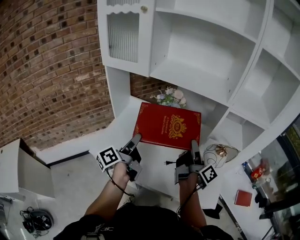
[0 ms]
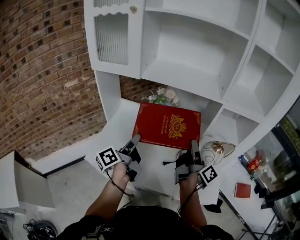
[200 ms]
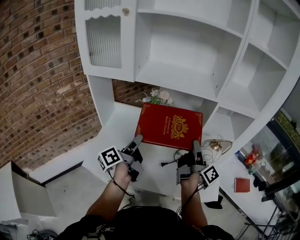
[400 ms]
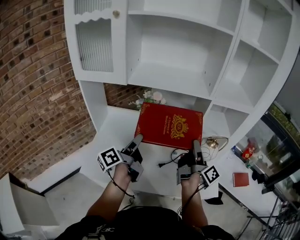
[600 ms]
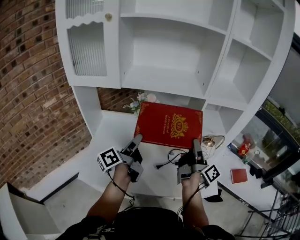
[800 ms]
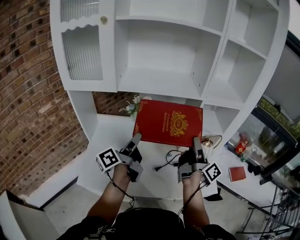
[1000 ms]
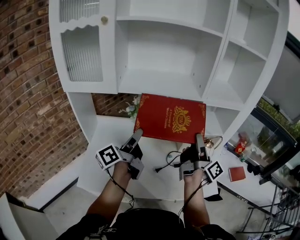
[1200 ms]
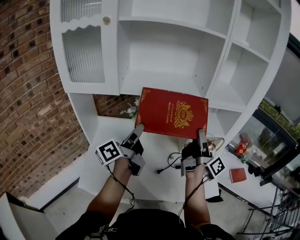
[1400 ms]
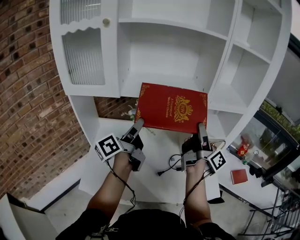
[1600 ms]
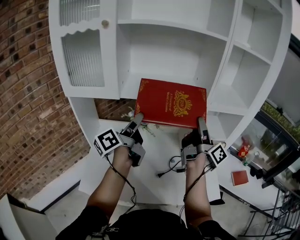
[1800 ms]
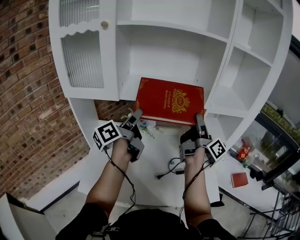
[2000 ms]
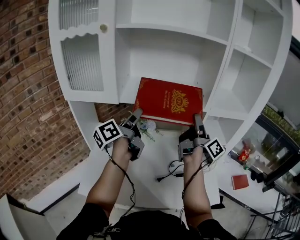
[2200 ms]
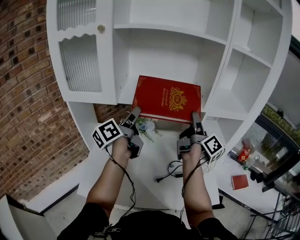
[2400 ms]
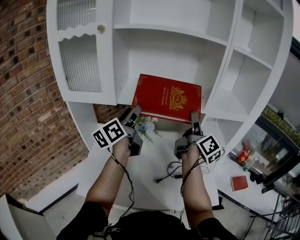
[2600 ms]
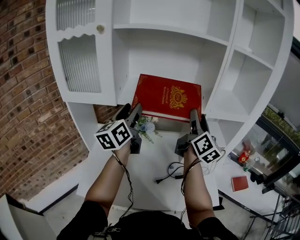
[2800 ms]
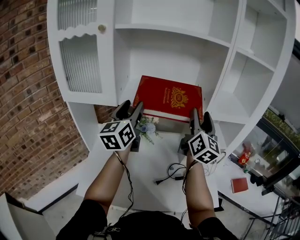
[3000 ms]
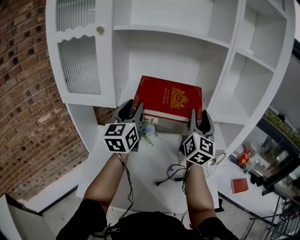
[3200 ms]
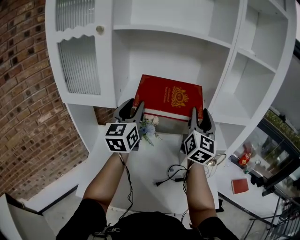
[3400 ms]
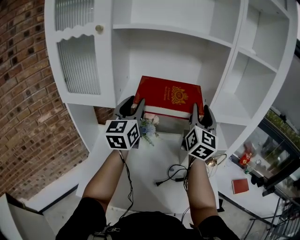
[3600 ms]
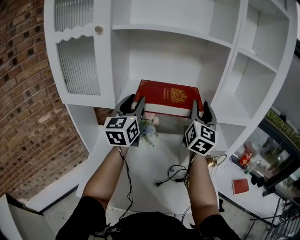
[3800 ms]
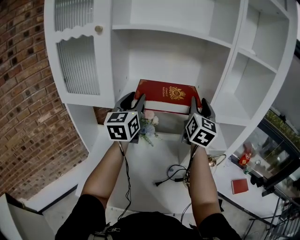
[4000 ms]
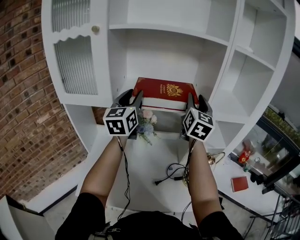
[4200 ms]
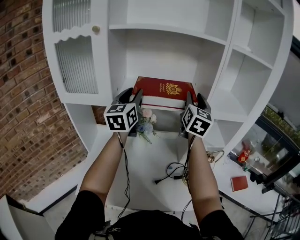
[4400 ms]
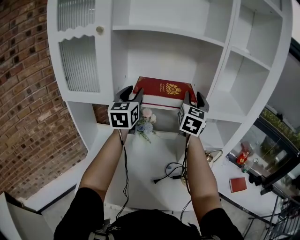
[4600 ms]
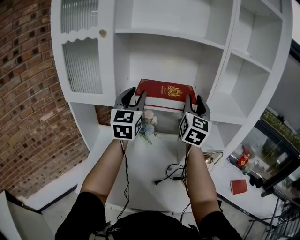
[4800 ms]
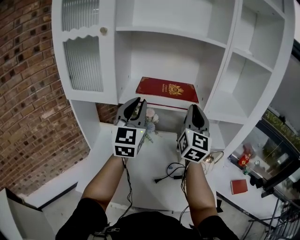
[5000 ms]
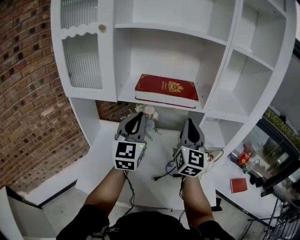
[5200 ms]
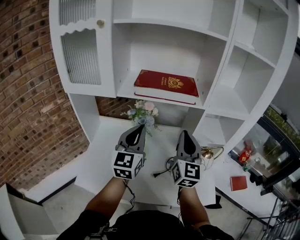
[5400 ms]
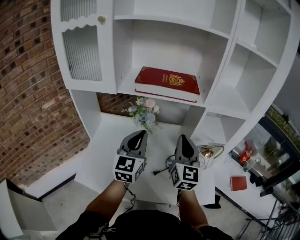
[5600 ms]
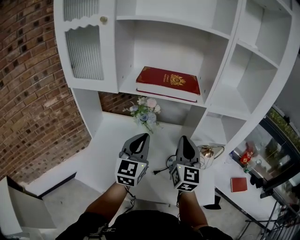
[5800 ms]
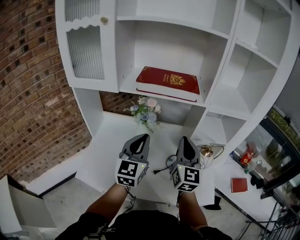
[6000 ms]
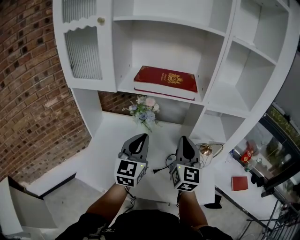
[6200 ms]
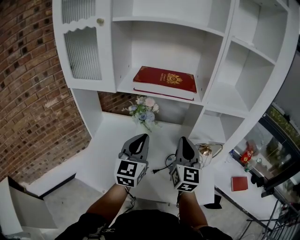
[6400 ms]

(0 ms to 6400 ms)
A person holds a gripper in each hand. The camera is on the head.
0 ms - 1600 ms: The right gripper shifts approximately 15 cm upward and forward, and swivels some 20 degrees. The left gripper travels forward and upward by roughly 20 cm, and rotates some 30 degrees.
1600 ms - 3200 ms: The left gripper moves forward and upward, roughly 10 cm, and twists approximately 60 degrees clockwise, seen from behind, while the right gripper is displaced upward and forward by some 10 cm, and rotates around the line of its fingers by some 70 degrees, counterclockwise from behind.
3200 ms - 4800 ms: The right gripper moves about 10 cm forward and comes back.
4800 ms - 6400 ms: The right gripper shifts approximately 20 cm downward and backward, and closes, while the left gripper heads downward, backward and to the right, covering some 25 cm, and closes up.

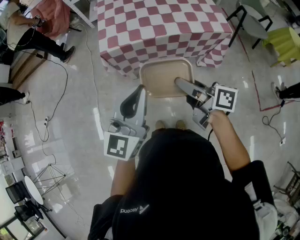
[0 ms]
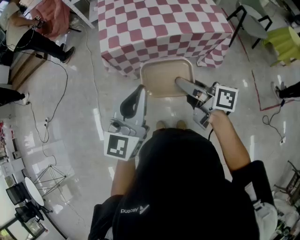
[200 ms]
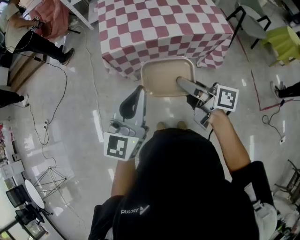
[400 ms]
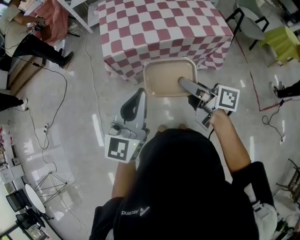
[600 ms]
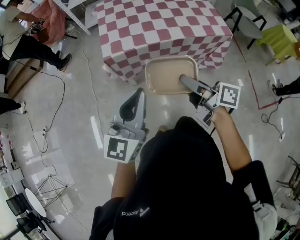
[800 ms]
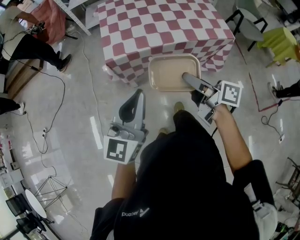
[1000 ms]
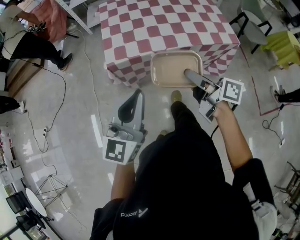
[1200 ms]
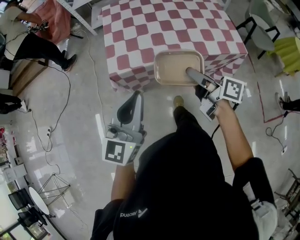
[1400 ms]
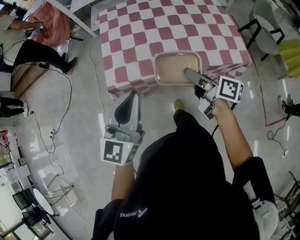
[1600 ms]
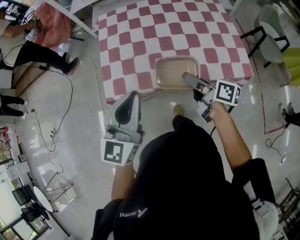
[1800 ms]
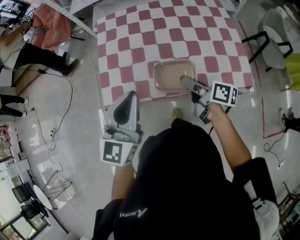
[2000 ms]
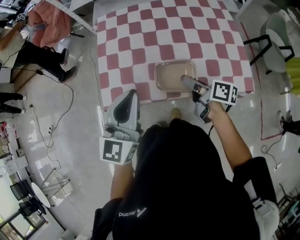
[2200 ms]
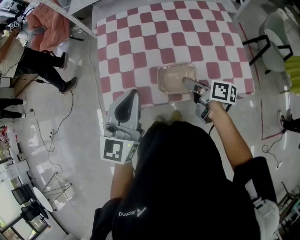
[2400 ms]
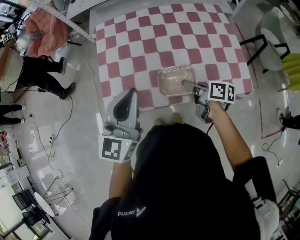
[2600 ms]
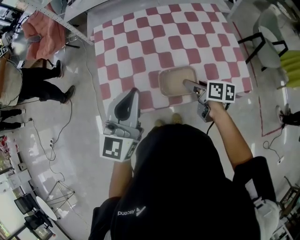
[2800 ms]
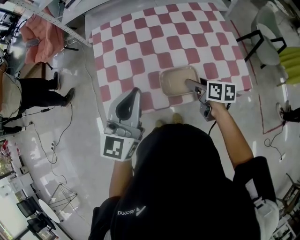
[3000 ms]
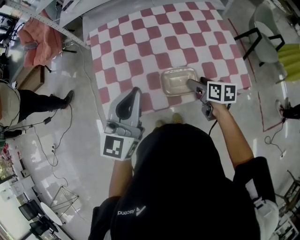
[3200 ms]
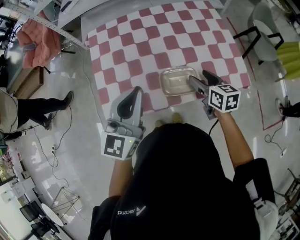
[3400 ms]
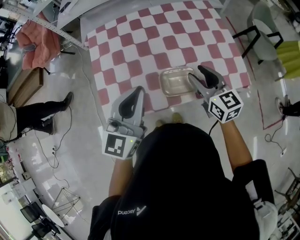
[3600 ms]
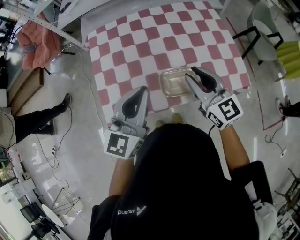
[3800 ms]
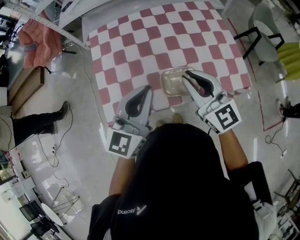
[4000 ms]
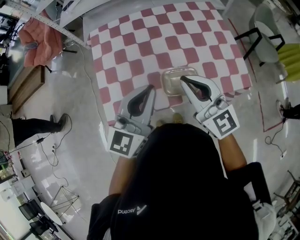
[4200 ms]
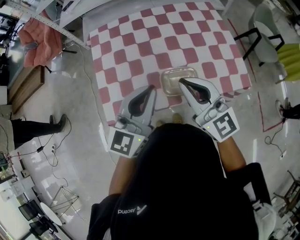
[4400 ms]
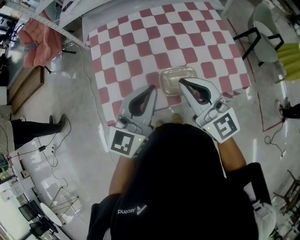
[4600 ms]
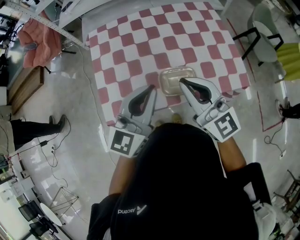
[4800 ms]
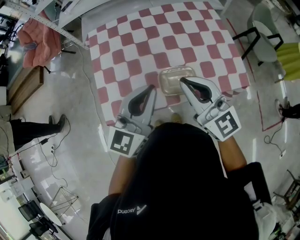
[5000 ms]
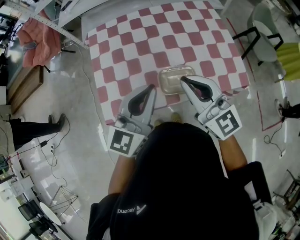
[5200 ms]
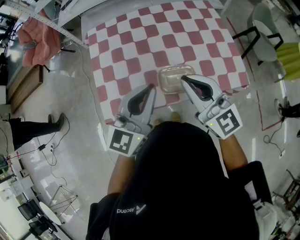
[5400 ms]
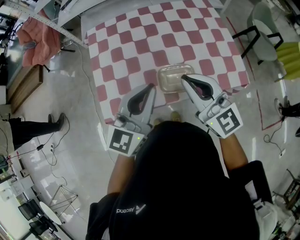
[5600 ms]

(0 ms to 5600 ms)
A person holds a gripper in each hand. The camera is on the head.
0 ms - 1400 ms: The two grippers go roughly 20 cm forward.
1400 ms - 2800 ms: The left gripper is displaced forward by approximately 25 cm, while the right gripper is displaced forward, downward and to the right by about 25 cm, and turns by some 30 degrees.
2800 ms - 4200 ms: The left gripper moves to the right, roughly 5 cm. Meanwhile the right gripper heads upward, covering roughly 20 cm, twists some 60 degrees counterclockwise, seen from behind, and closes up.
4200 ms - 5600 ms: The grippers move only a little.

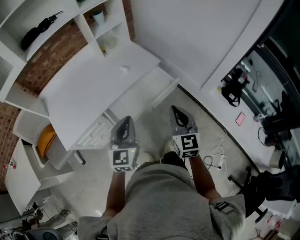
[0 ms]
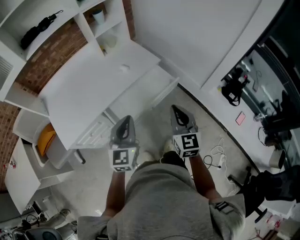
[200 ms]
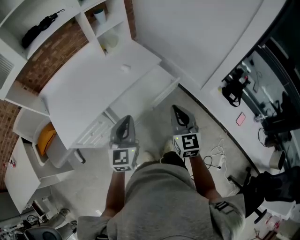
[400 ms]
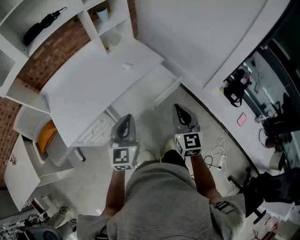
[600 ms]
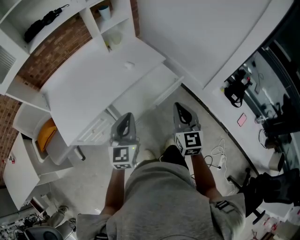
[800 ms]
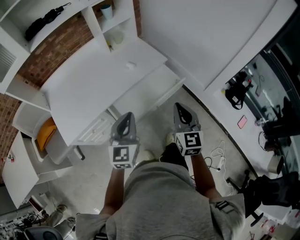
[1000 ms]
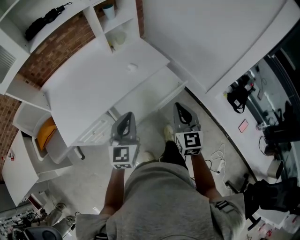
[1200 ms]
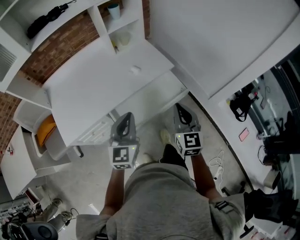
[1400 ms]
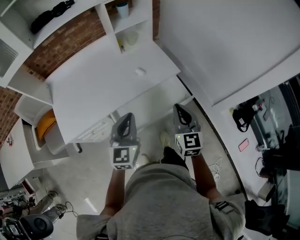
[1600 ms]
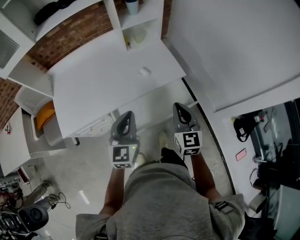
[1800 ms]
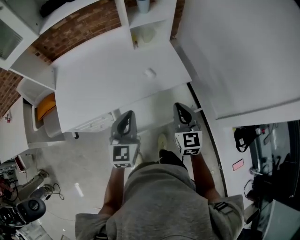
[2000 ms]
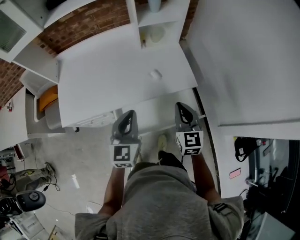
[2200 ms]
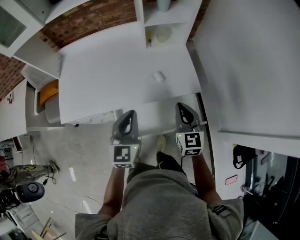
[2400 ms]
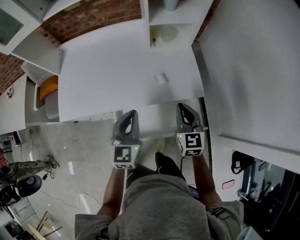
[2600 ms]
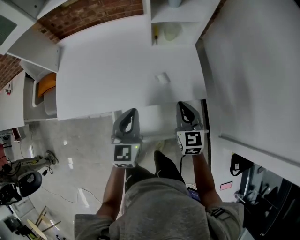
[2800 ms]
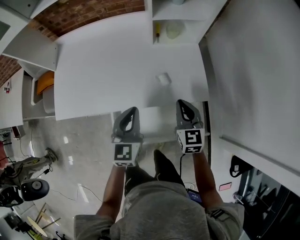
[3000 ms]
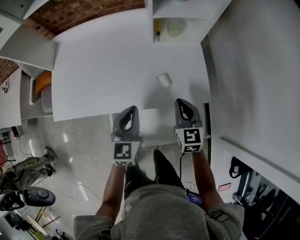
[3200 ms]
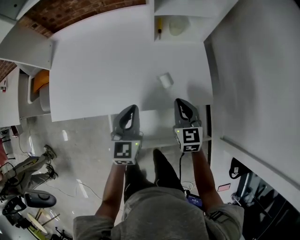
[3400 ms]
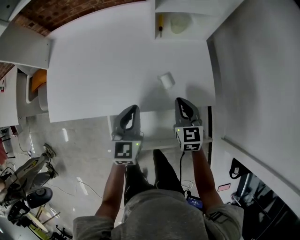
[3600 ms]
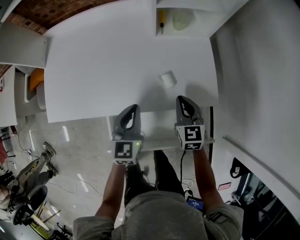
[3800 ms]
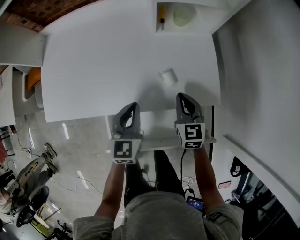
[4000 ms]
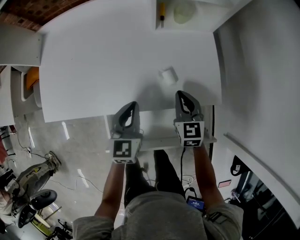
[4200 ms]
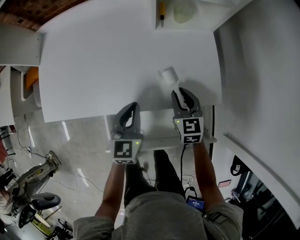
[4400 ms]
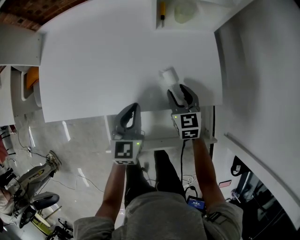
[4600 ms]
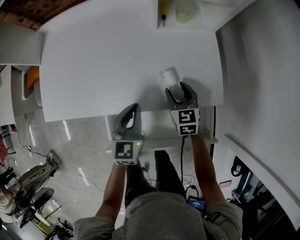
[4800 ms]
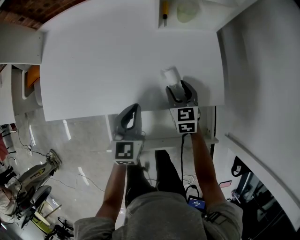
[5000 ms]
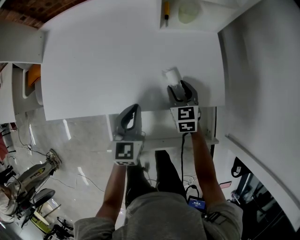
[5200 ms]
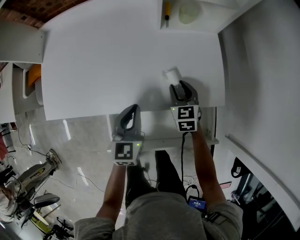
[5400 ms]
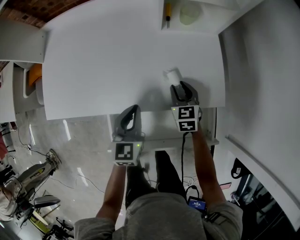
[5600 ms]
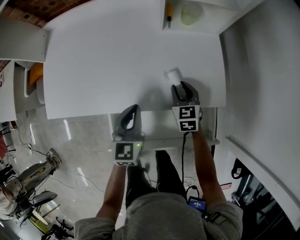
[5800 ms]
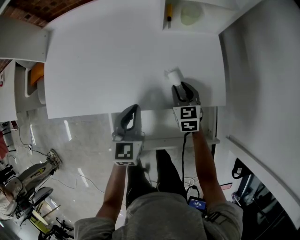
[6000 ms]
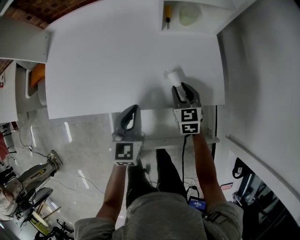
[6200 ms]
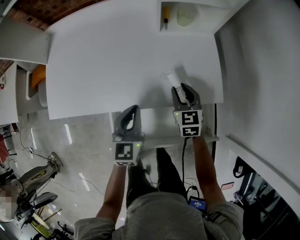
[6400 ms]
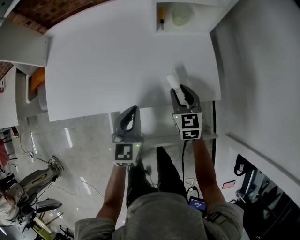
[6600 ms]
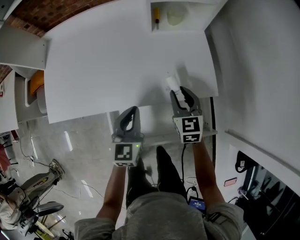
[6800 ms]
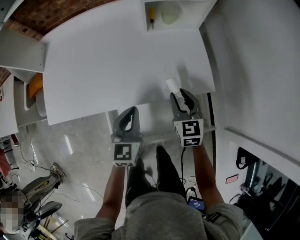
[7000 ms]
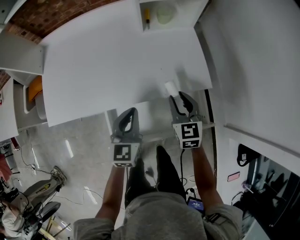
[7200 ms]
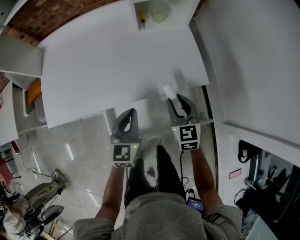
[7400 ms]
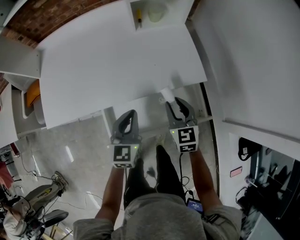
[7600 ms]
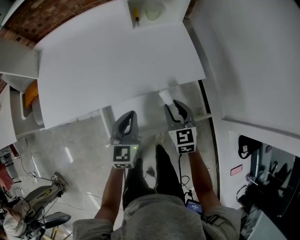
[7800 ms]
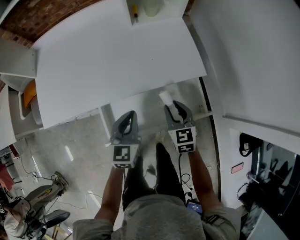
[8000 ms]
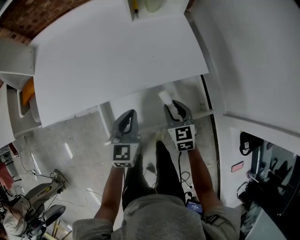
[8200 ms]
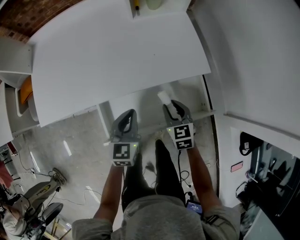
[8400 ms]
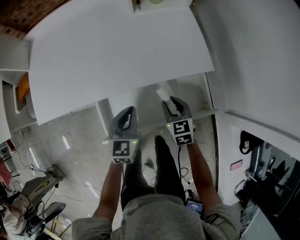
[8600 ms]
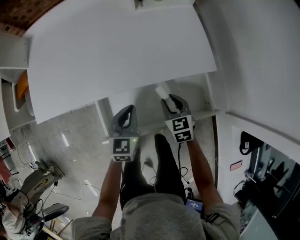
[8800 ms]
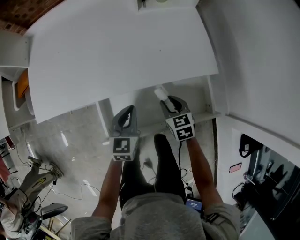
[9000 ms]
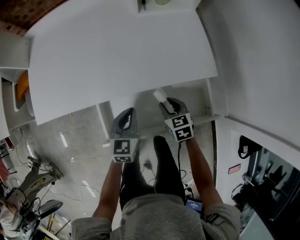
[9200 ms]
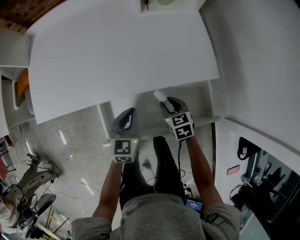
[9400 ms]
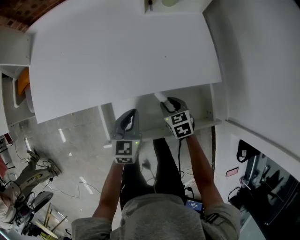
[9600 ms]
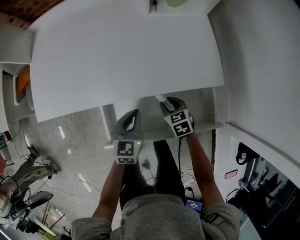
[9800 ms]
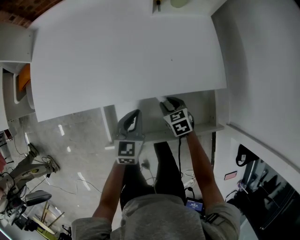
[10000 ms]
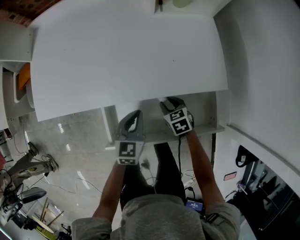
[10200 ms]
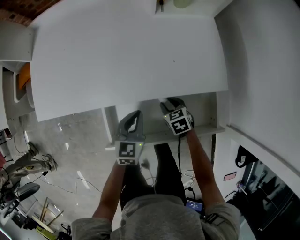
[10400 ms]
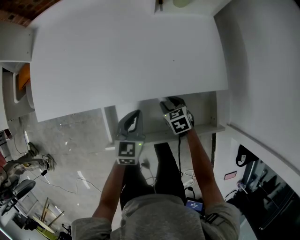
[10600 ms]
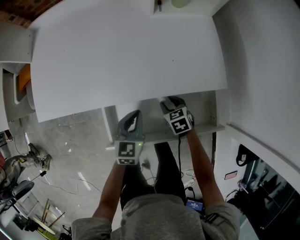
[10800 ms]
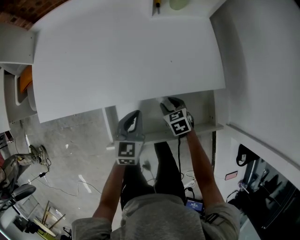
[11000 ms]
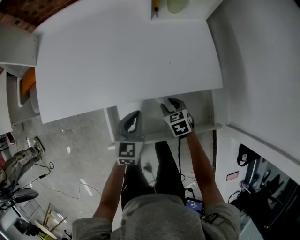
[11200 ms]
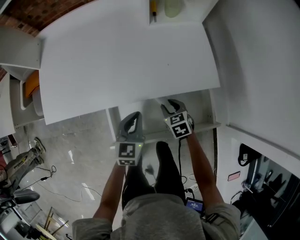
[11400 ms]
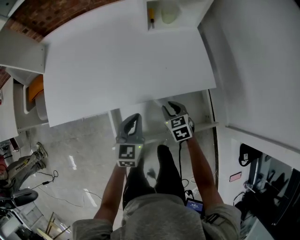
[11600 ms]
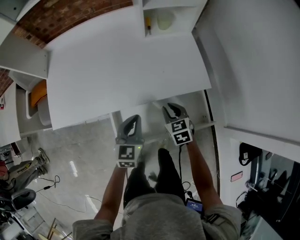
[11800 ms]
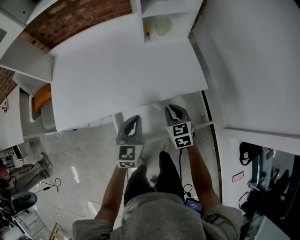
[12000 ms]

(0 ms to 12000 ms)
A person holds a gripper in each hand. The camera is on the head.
0 ms - 1600 ms: Both grippers move forward, roughly 10 cm.
1600 ms - 3000 ms: Both grippers move forward and downward, roughly 25 cm. The right gripper swivels approximately 30 degrees. Meanwhile the left gripper turns by approximately 20 degrees.
3000 ms - 4400 ms: Both grippers travel together downward and forward, about 15 cm. The right gripper opens up.
4400 ms - 6000 ms: The right gripper opens, then closes again.
6000 ms - 7600 ms: The right gripper goes roughly 20 cm backward and upward, while the left gripper travels backward by roughly 10 cm.
7600 ms - 9000 ms: The two grippers go approximately 15 cm downward. The right gripper turns by approximately 20 degrees.
9000 ms - 10400 ms: The right gripper goes about 5 cm downward.
10400 ms - 12000 ms: The two grippers go about 20 cm upward. The right gripper turns by about 30 degrees, and closes up.
